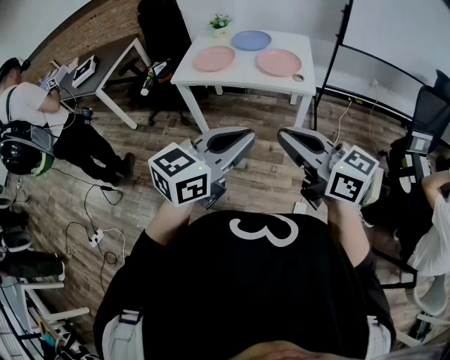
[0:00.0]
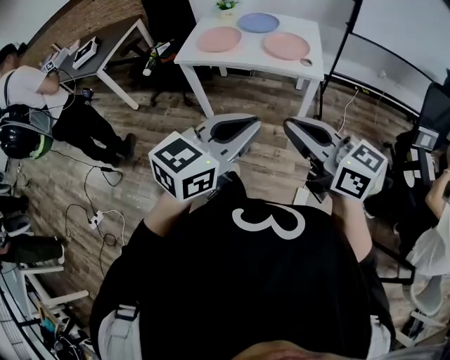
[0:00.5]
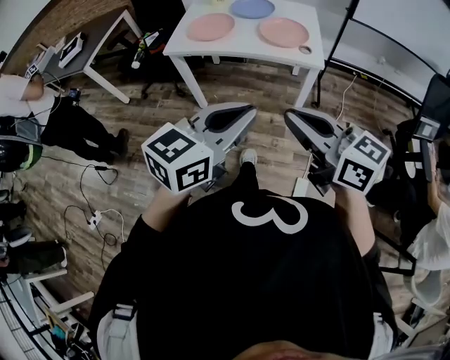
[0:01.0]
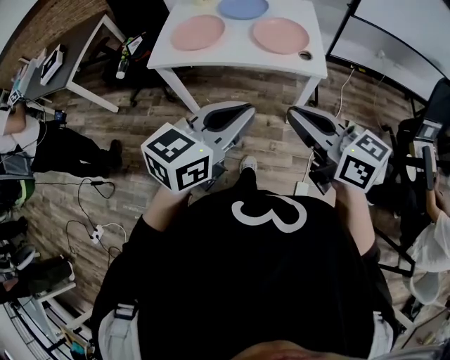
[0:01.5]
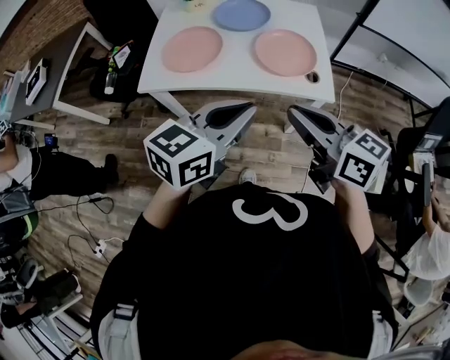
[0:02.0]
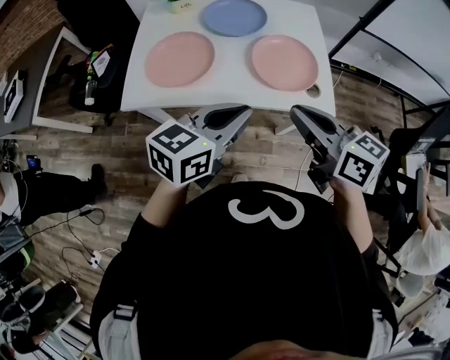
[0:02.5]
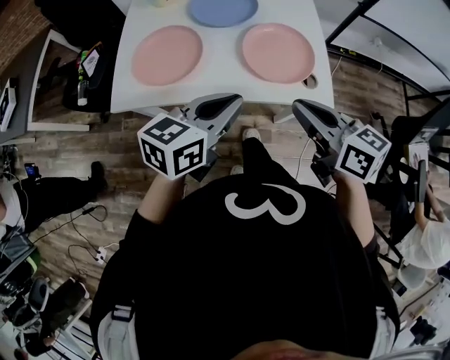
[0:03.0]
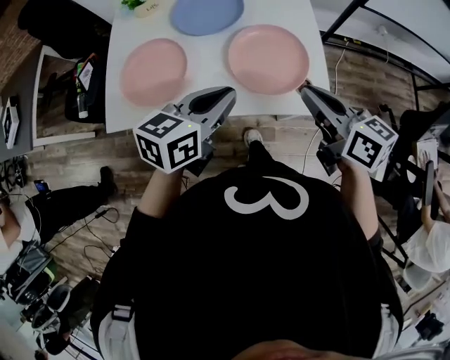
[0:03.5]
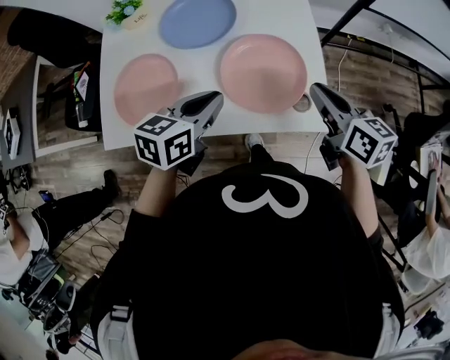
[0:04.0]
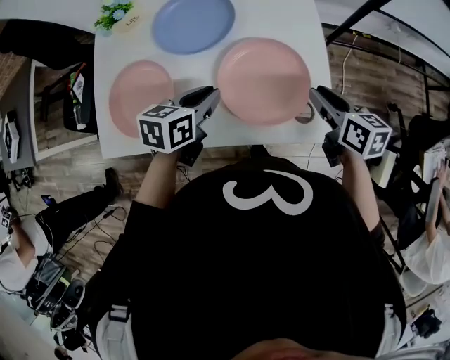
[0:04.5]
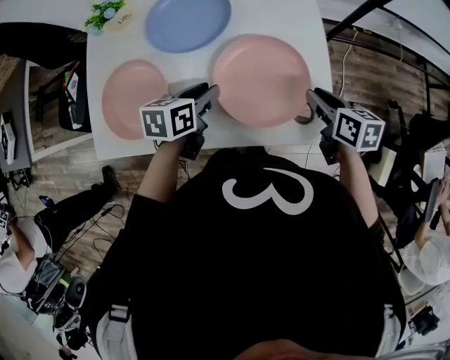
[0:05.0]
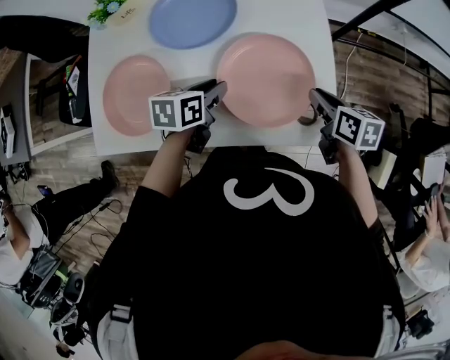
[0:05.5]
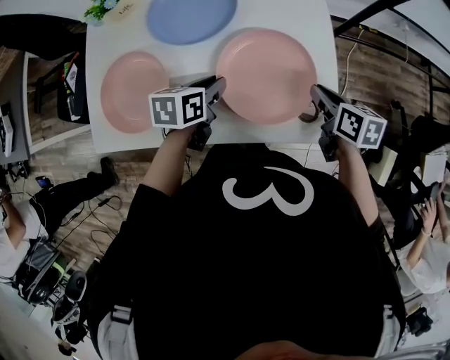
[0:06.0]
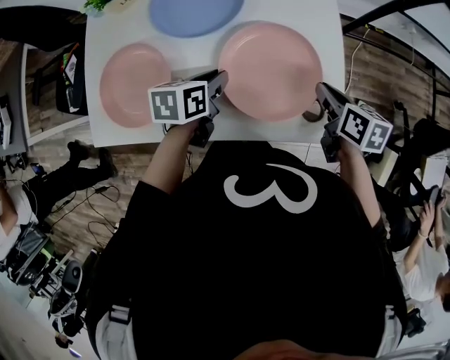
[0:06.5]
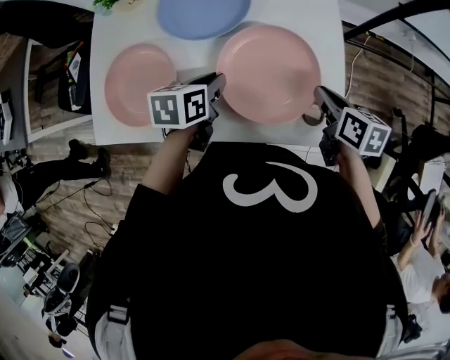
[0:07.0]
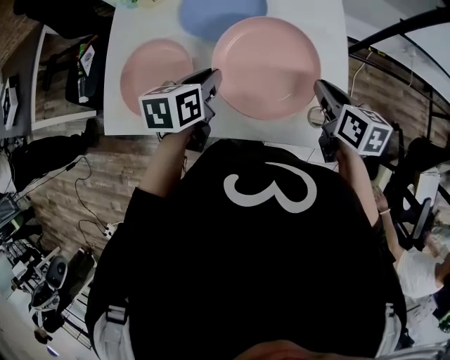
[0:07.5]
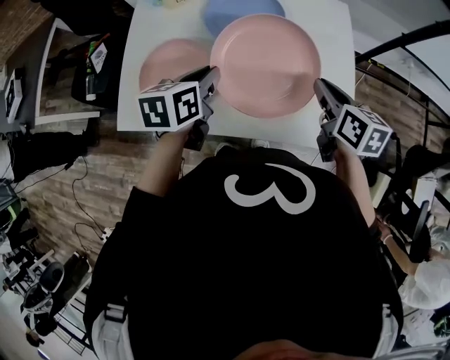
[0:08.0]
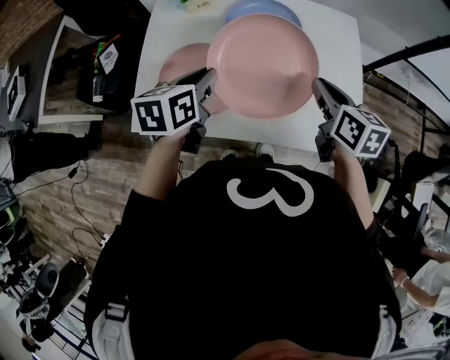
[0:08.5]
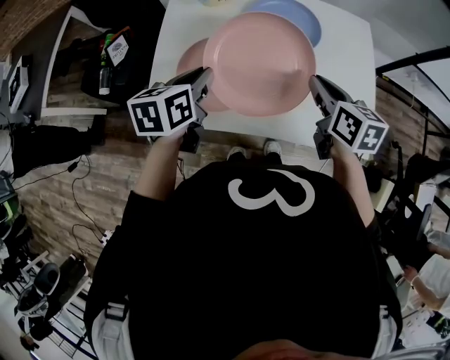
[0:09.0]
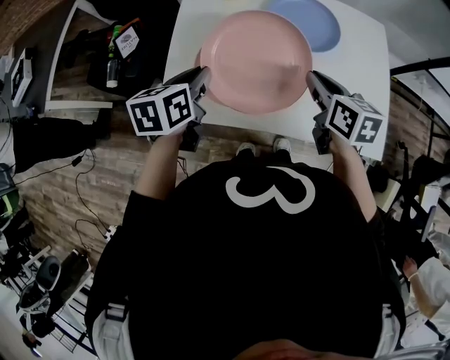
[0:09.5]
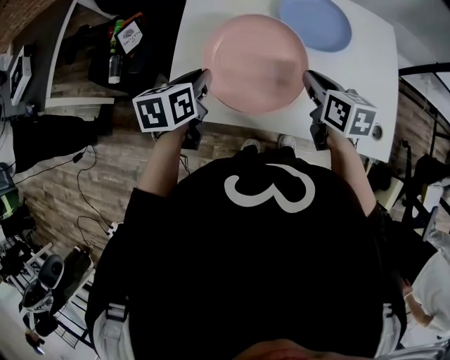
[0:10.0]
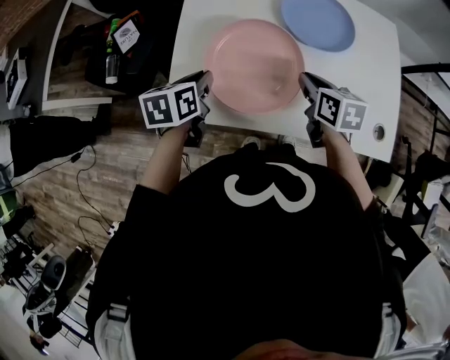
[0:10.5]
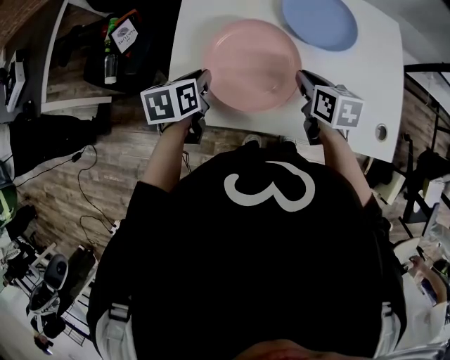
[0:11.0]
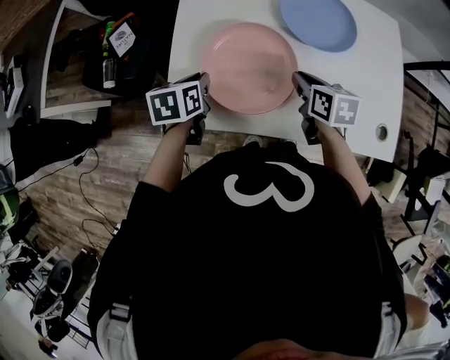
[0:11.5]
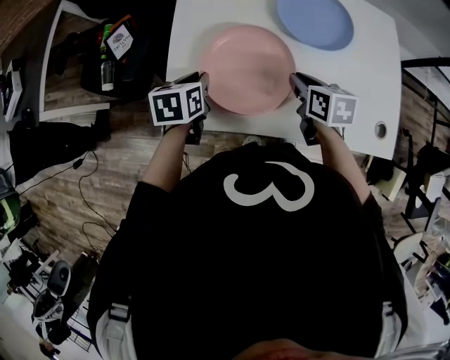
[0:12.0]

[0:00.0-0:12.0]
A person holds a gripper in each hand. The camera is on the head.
0:00.0 to 0:02.0: The grippers both shift forward by approximately 35 cm.
0:02.0 to 0:04.0: The left gripper is displaced forward and downward by roughly 35 cm, and swivels some 20 degrees, while the right gripper shifts approximately 35 cm forward, to the right and downward, and rotates approximately 30 degrees.
0:04.0 to 0:06.0: The right gripper heads downward, covering about 15 cm, and changes its angle by about 20 degrees; the left gripper travels downward and forward by about 15 cm.
0:06.0 to 0:08.0: Both grippers move upward and to the left, about 20 cm.
0:08.0 to 0:10.0: The grippers both shift to the left by approximately 25 cm.
0:10.0 to 0:12.0: Both grippers move downward, roughly 5 cm.

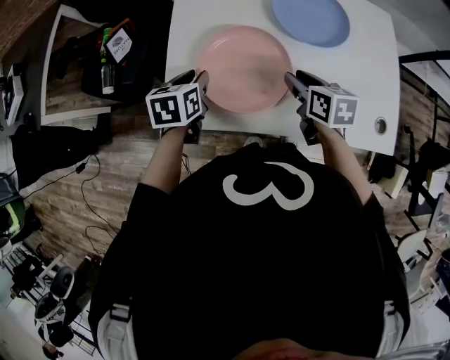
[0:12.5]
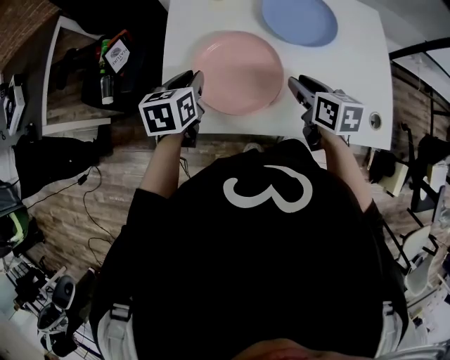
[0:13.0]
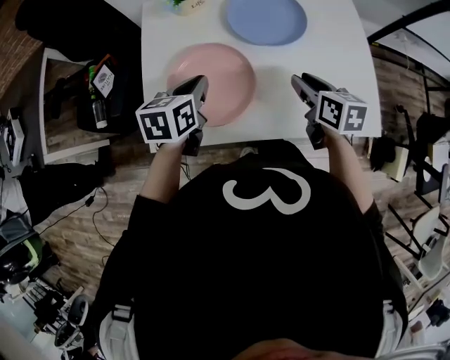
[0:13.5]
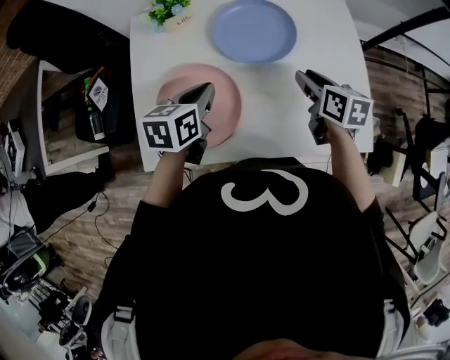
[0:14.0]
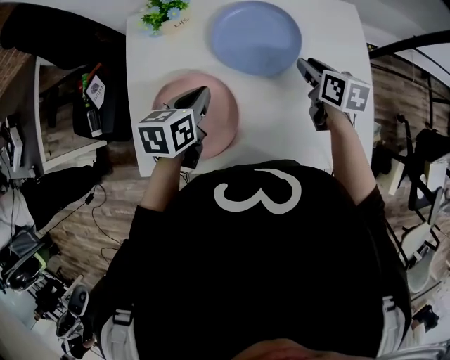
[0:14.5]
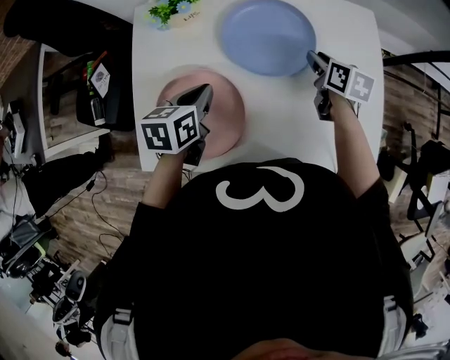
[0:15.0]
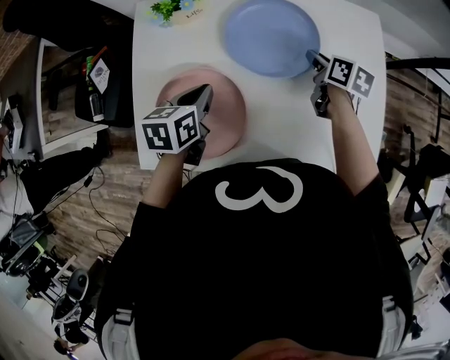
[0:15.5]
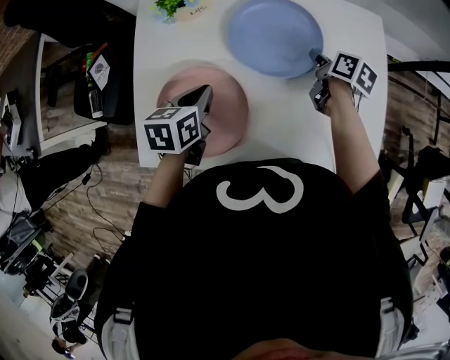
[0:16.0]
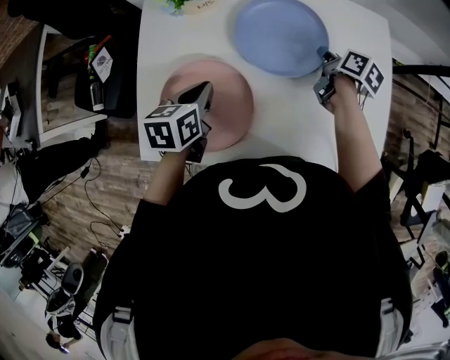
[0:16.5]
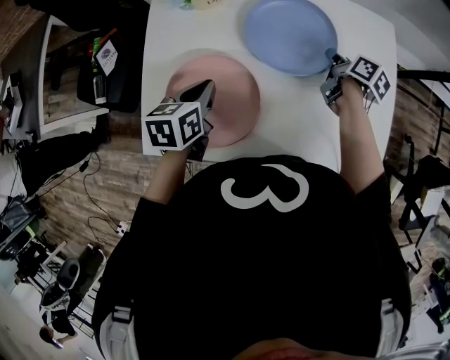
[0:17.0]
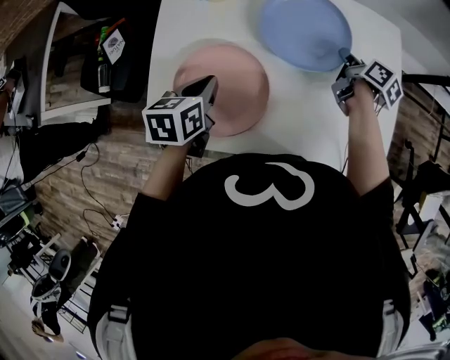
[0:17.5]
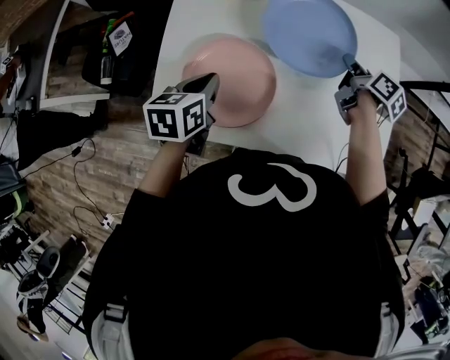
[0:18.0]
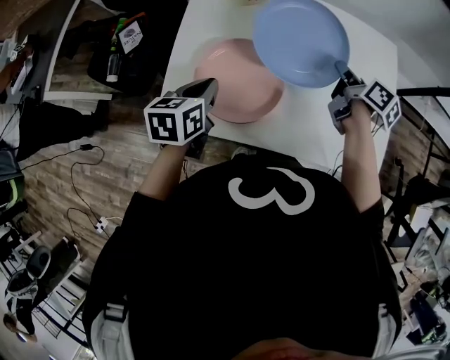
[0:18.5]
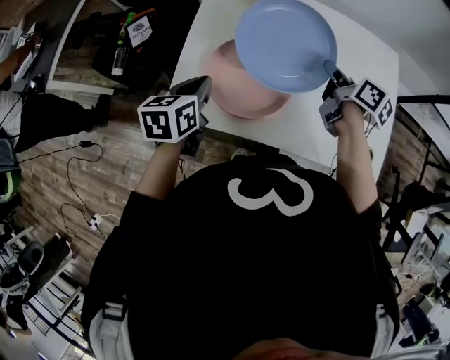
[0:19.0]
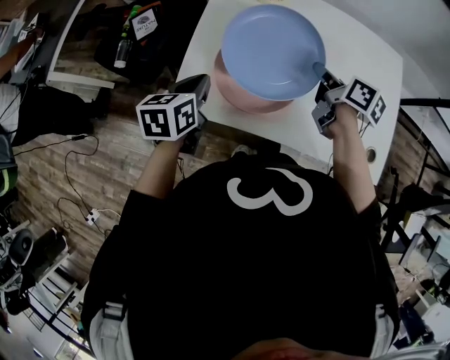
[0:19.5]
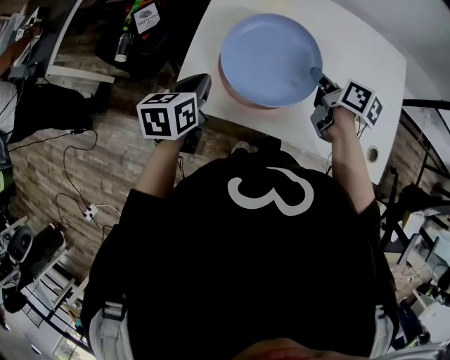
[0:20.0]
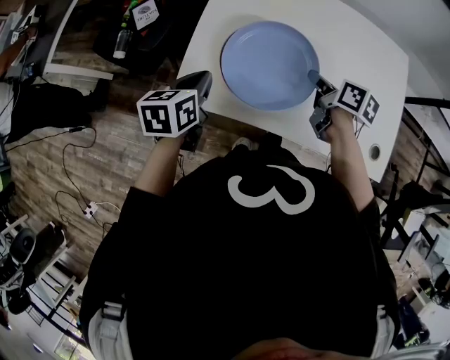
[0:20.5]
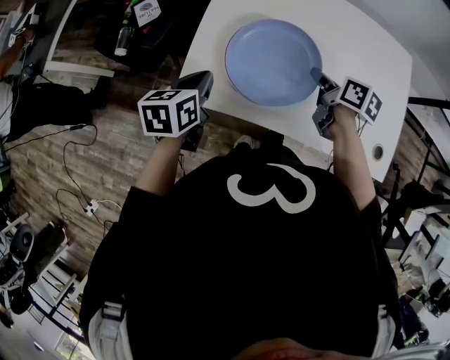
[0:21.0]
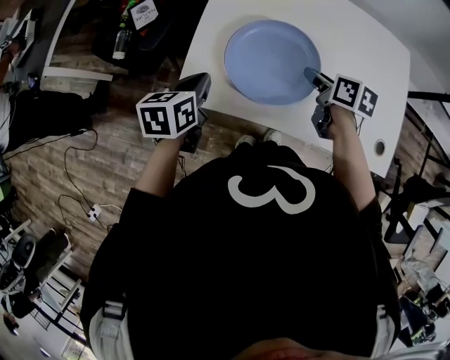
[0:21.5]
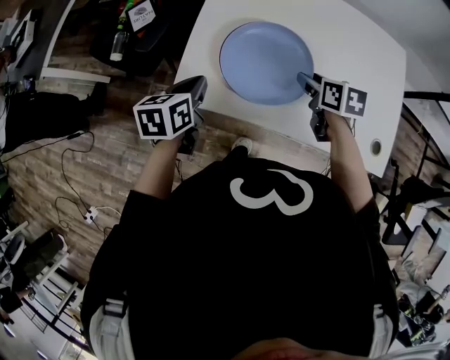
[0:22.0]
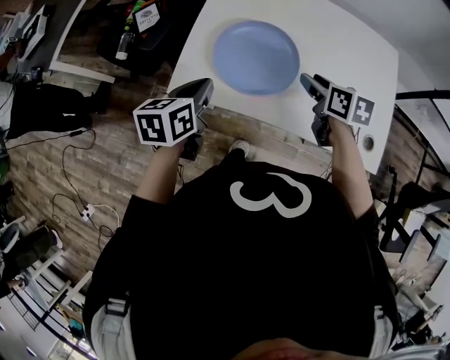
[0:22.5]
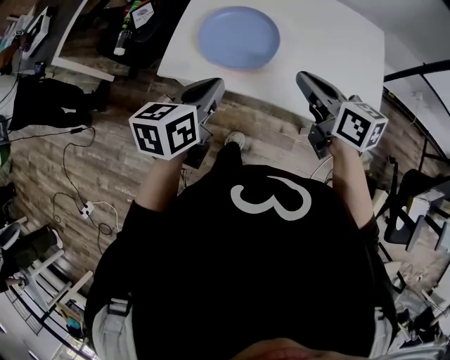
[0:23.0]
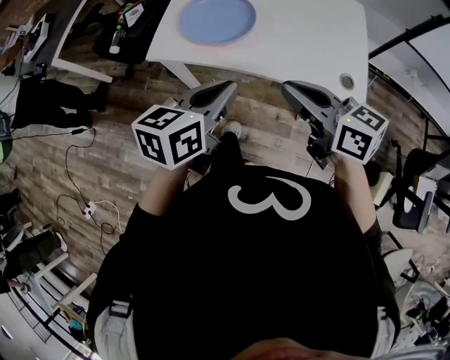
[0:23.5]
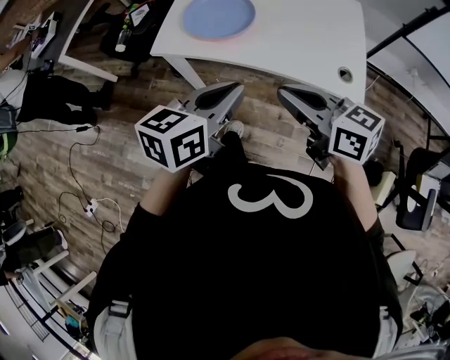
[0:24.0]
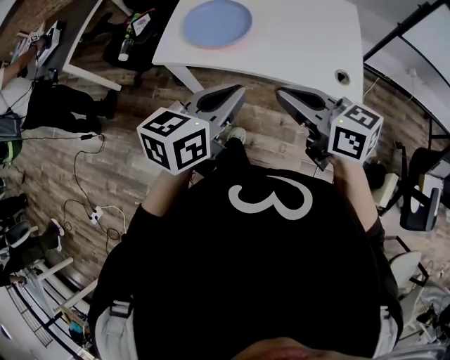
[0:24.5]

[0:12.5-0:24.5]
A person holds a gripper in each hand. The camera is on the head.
0:12.5 to 0:14.5: Both grippers move to the right and forward, roughly 20 cm. The left gripper closes up.
0:14.5 to 0:16.5: The right gripper is displaced downward and forward by roughly 10 cm, changes its angle by about 30 degrees, and closes up. Meanwhile the left gripper shifts by approximately 5 cm.
0:16.5 to 0:18.5: The left gripper heads backward and to the left, covering roughly 10 cm. Meanwhile the right gripper shifts about 15 cm upward, backward and to the left.
0:18.5 to 0:20.5: The left gripper is displaced to the left by about 10 cm. The right gripper travels to the left and backward by about 15 cm, and turns by roughly 20 degrees.
0:20.5 to 0:22.5: The right gripper shifts by about 5 cm, swivels roughly 20 degrees, and opens up; the left gripper is displaced backward by roughly 5 cm.
0:22.5 to 0:24.5: The right gripper goes approximately 35 cm backward and upward, turns by some 40 degrees, and closes its fingers. Meanwhile the left gripper heads backward, to the right and upward, covering roughly 35 cm, and turns by roughly 20 degrees.

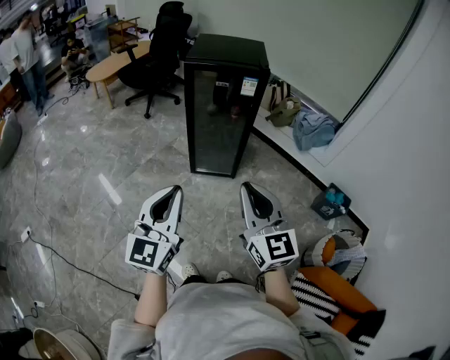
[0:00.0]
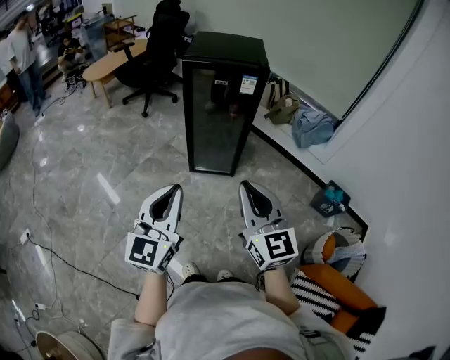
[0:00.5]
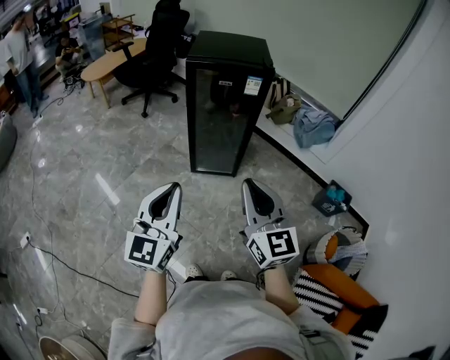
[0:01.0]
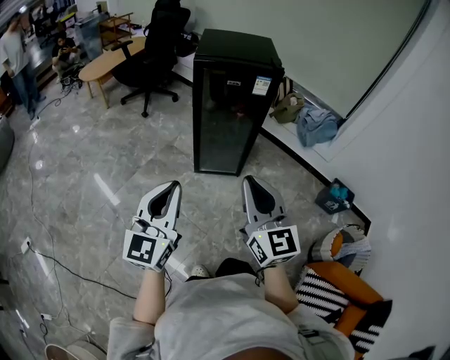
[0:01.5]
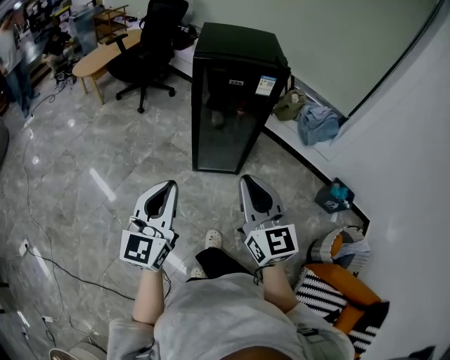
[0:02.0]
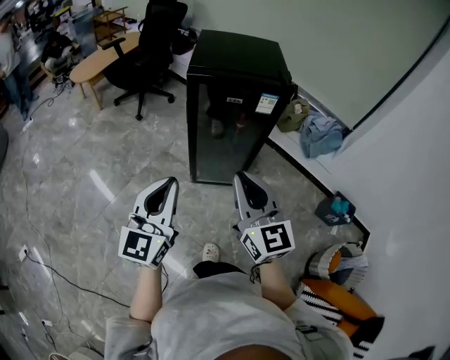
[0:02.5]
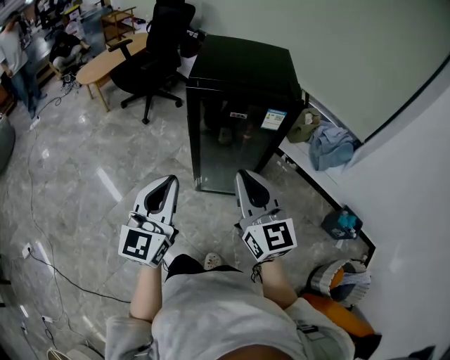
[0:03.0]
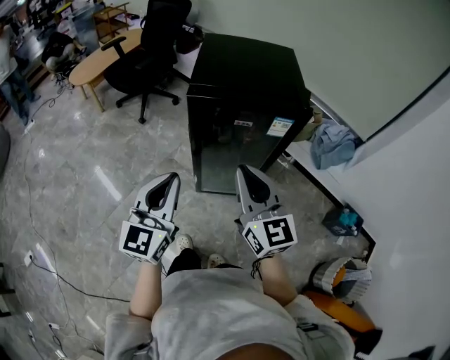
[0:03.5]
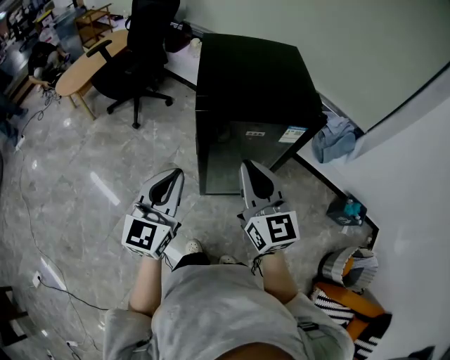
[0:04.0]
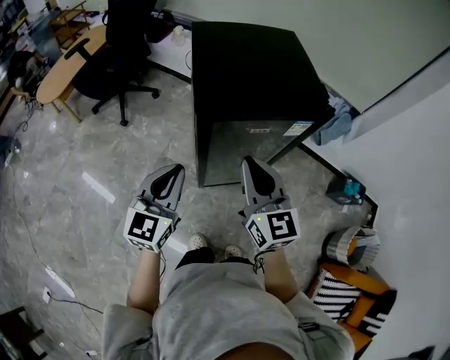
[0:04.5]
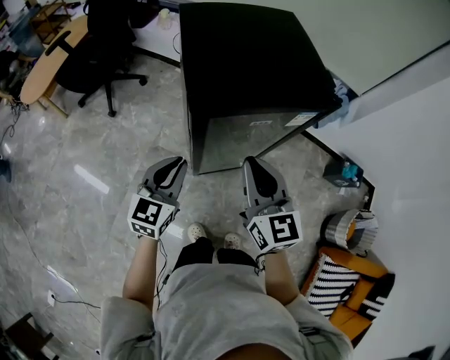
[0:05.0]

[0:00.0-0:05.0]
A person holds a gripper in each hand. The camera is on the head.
0:00.0 to 0:02.5: The right gripper goes roughly 25 cm forward and to the left; the left gripper goes roughly 20 cm forward.
0:02.5 to 0:05.0: The right gripper shifts roughly 25 cm forward, and turns by roughly 20 degrees. The left gripper goes approximately 35 cm forward and downward, and rotates roughly 30 degrees.
